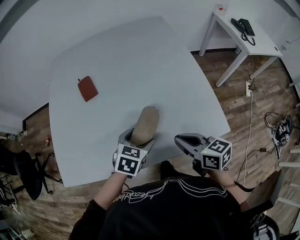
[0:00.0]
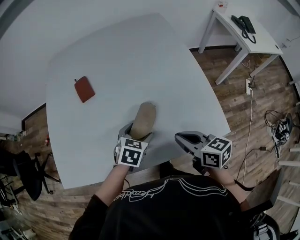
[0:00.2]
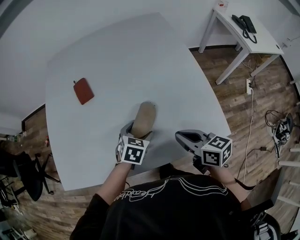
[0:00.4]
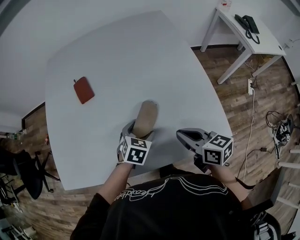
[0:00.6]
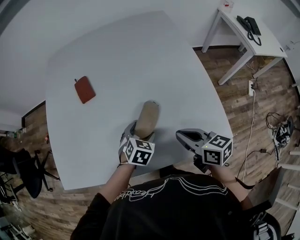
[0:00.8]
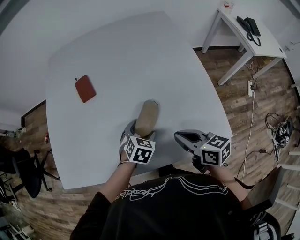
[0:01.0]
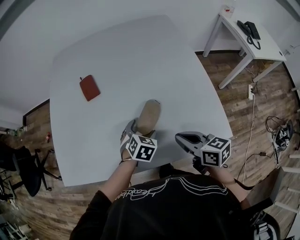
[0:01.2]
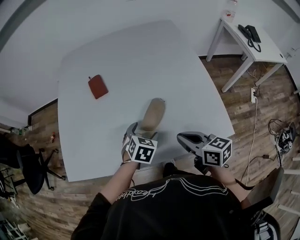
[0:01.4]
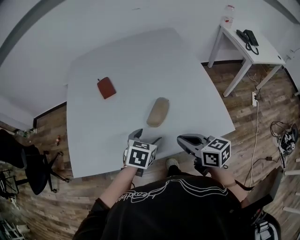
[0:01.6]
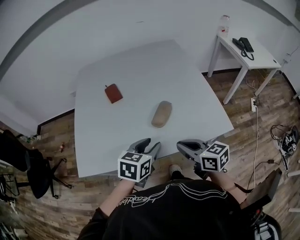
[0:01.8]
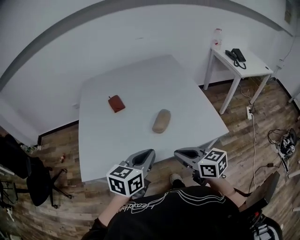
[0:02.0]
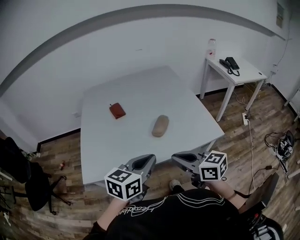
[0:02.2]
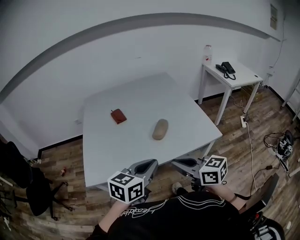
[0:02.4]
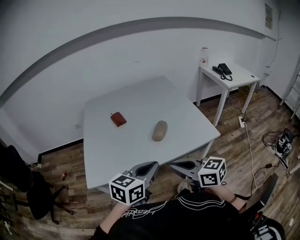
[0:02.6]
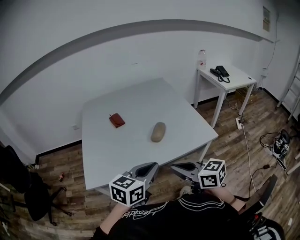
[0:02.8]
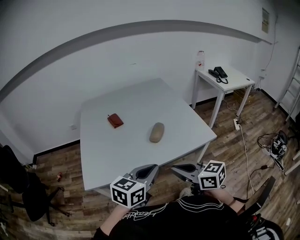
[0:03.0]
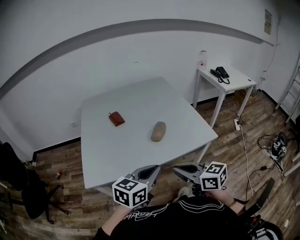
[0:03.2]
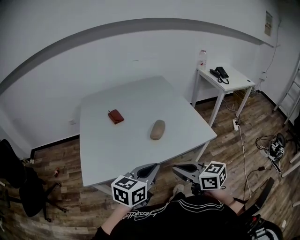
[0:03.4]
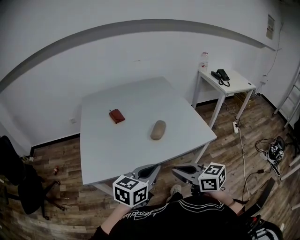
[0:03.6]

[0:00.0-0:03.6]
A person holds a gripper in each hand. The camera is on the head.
0:00.0 to 0:01.8: The right gripper shifts about 10 cm to the left and backward, while the left gripper heads upward, backward and to the left, covering approximately 15 cm, and closes its fingers.
0:01.8 to 0:03.6: The right gripper goes about 20 cm backward, upward and to the left. Meanwhile the left gripper travels backward and upward by some 20 cm, changes its angle by some 20 degrees, and closes its fingers.

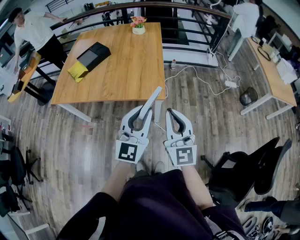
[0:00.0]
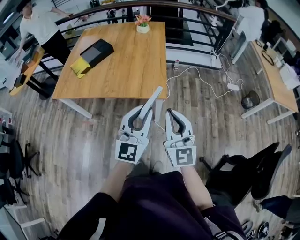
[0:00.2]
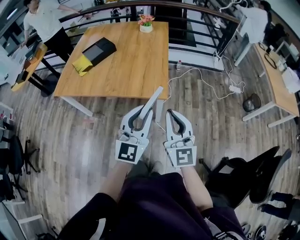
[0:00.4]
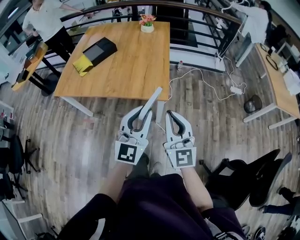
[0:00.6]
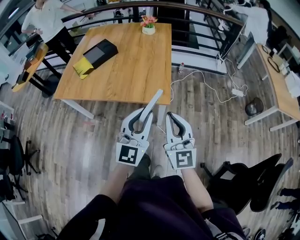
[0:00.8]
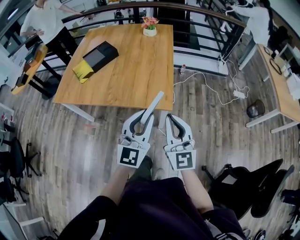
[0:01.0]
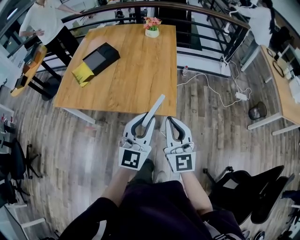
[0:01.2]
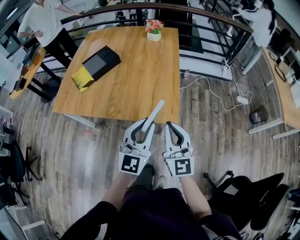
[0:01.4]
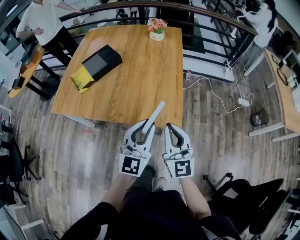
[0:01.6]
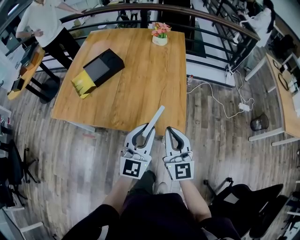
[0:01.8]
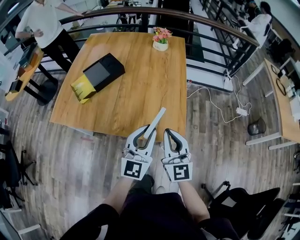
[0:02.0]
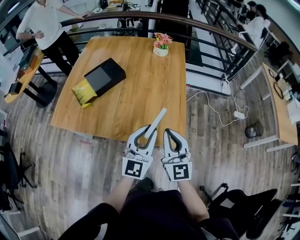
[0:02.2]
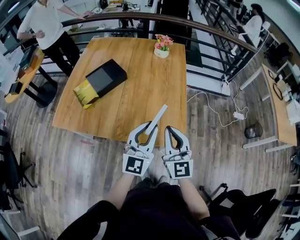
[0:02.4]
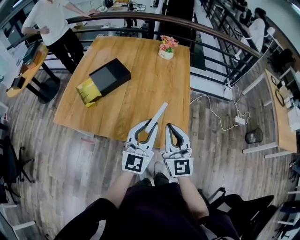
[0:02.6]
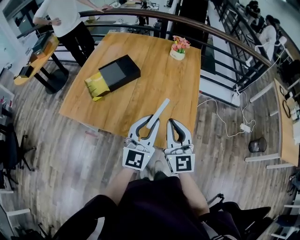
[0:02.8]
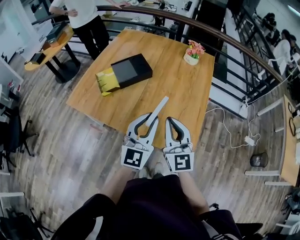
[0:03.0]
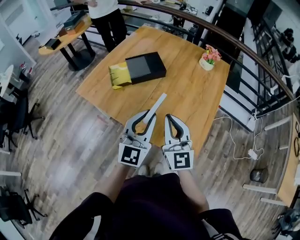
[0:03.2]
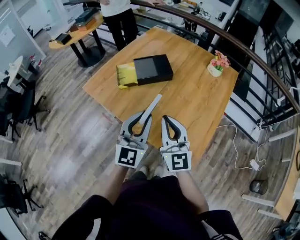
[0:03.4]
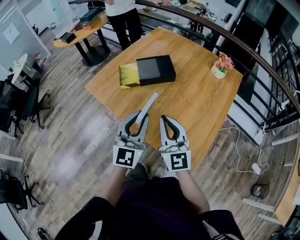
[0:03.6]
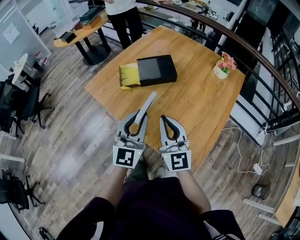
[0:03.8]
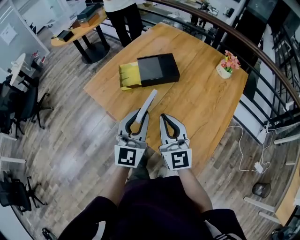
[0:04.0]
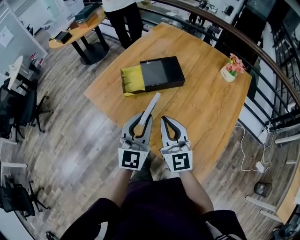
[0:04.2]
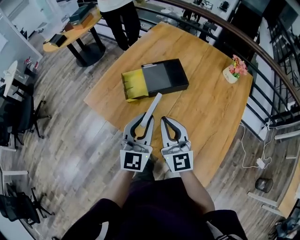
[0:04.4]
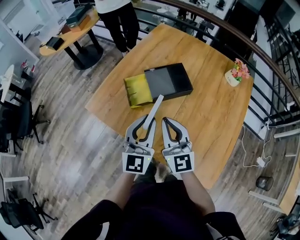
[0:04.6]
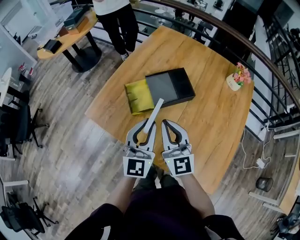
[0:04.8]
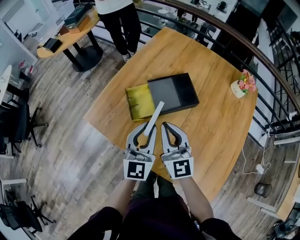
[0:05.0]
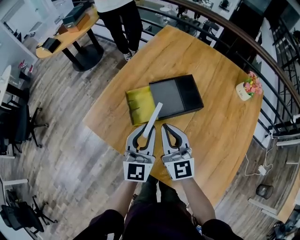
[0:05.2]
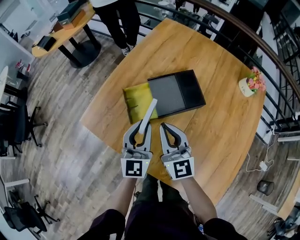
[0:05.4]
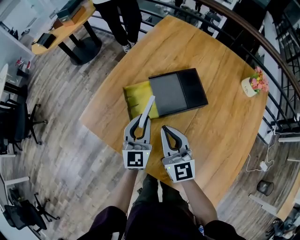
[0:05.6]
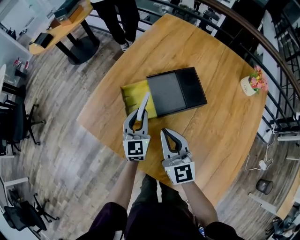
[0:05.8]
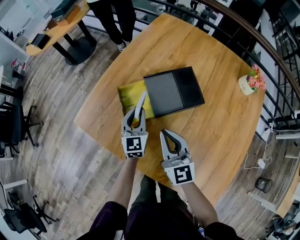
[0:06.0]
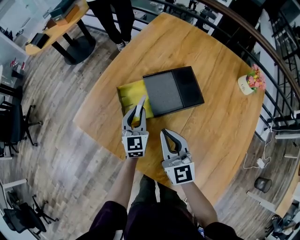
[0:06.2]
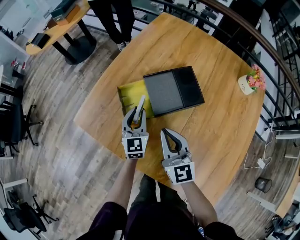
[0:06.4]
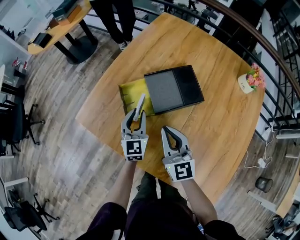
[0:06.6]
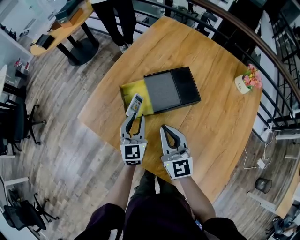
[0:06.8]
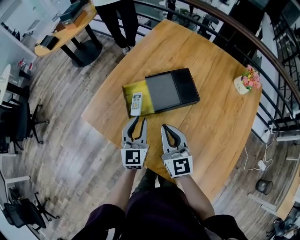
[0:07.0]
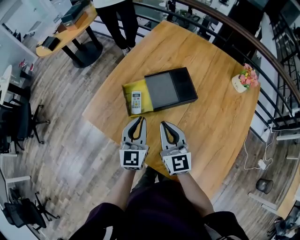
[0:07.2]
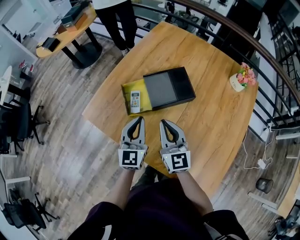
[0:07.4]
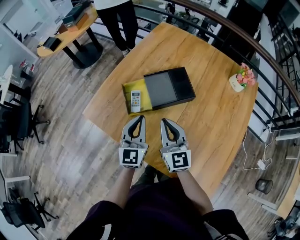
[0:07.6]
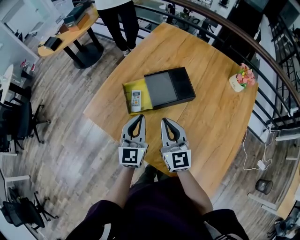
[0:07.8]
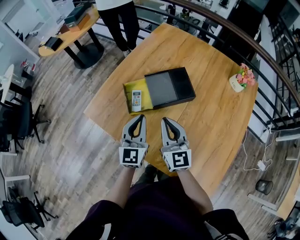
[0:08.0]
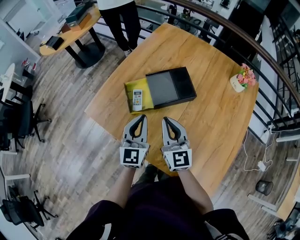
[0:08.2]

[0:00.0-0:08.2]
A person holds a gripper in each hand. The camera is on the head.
0:00.0 to 0:01.6: Both grippers travel together forward and to the left, roughly 20 cm.
0:01.6 to 0:03.2: The left gripper changes place by some 20 cm, and changes its angle by some 30 degrees. Meanwhile the right gripper ends up approximately 25 cm from where it was, and rotates some 20 degrees.
0:03.2 to 0:05.0: Both grippers move forward and to the left, some 35 cm.
0:05.0 to 0:06.6: The right gripper moves downward, approximately 10 cm, while the left gripper is displaced downward and forward by some 20 cm, and changes its angle by about 20 degrees.
0:06.6 to 0:08.2: The right gripper heads backward, covering roughly 5 cm; the left gripper heads upward and backward, covering roughly 20 cm.

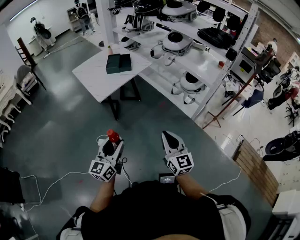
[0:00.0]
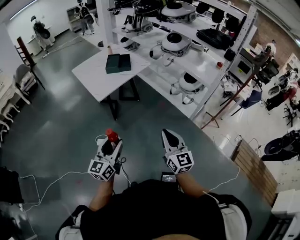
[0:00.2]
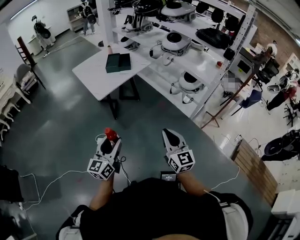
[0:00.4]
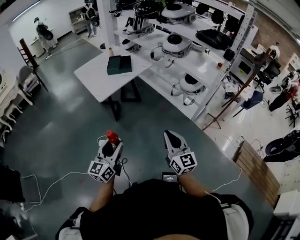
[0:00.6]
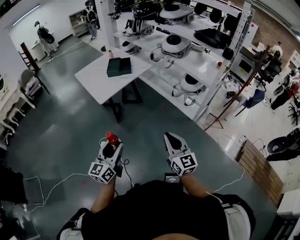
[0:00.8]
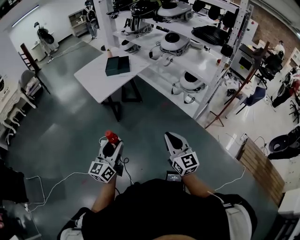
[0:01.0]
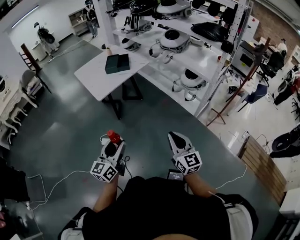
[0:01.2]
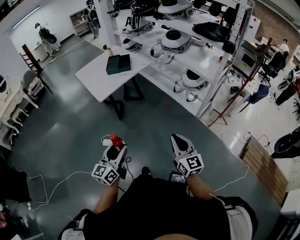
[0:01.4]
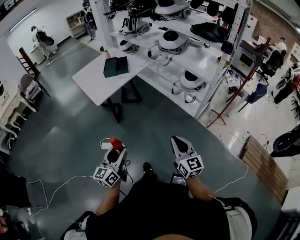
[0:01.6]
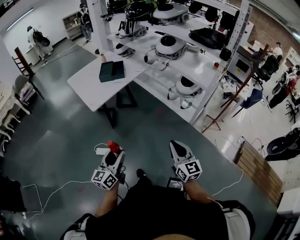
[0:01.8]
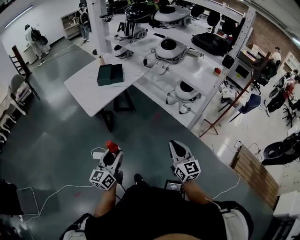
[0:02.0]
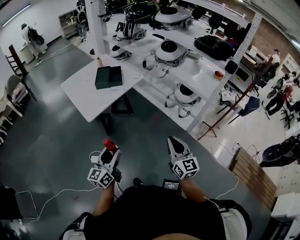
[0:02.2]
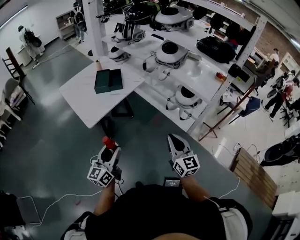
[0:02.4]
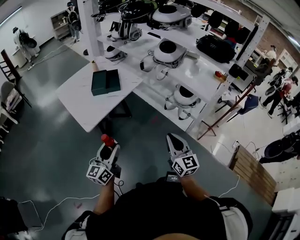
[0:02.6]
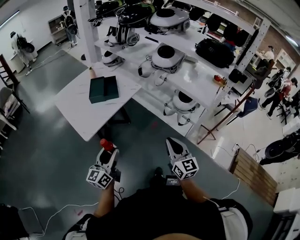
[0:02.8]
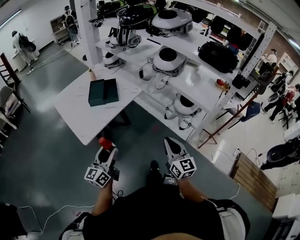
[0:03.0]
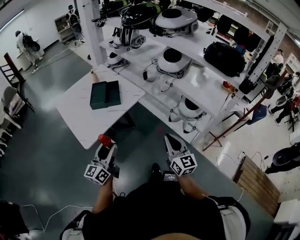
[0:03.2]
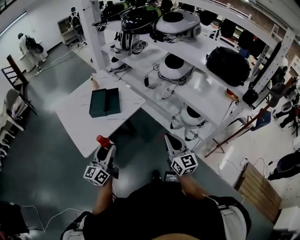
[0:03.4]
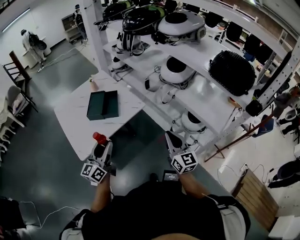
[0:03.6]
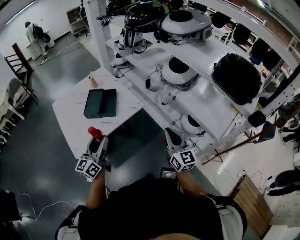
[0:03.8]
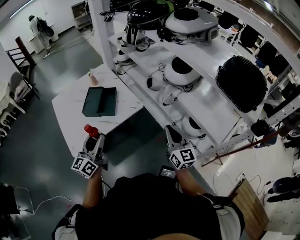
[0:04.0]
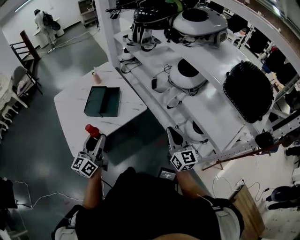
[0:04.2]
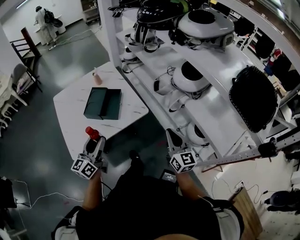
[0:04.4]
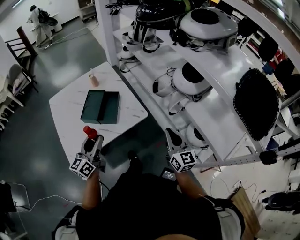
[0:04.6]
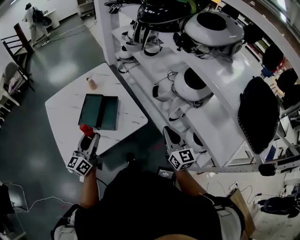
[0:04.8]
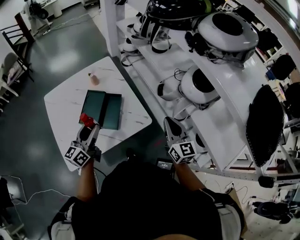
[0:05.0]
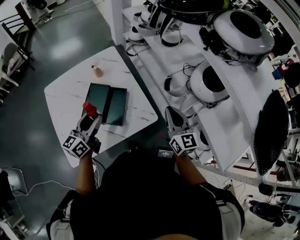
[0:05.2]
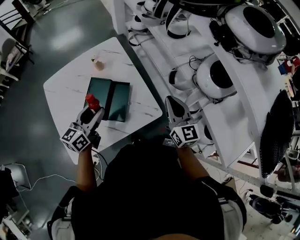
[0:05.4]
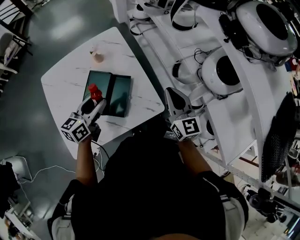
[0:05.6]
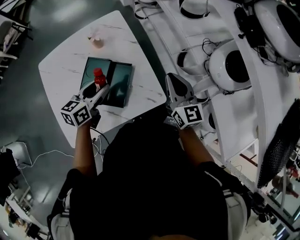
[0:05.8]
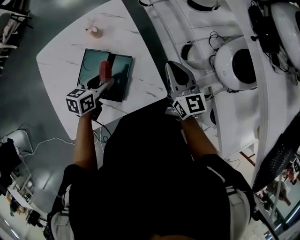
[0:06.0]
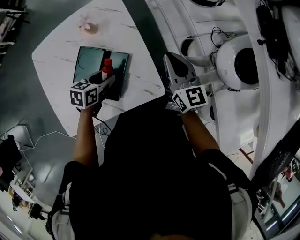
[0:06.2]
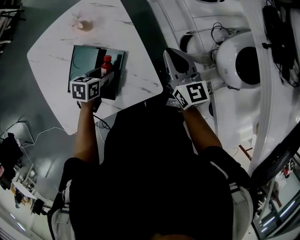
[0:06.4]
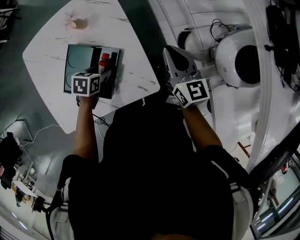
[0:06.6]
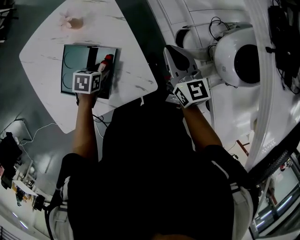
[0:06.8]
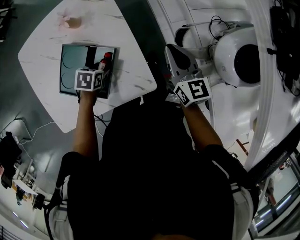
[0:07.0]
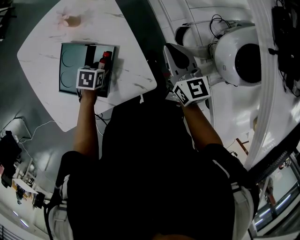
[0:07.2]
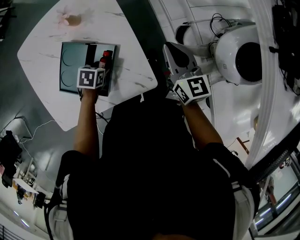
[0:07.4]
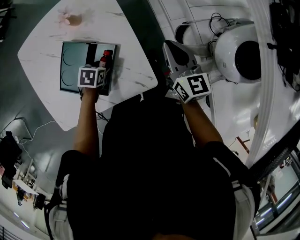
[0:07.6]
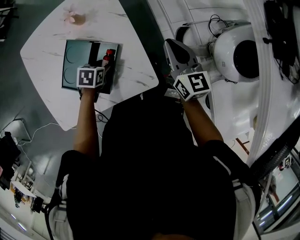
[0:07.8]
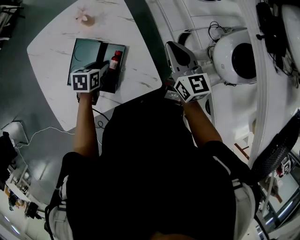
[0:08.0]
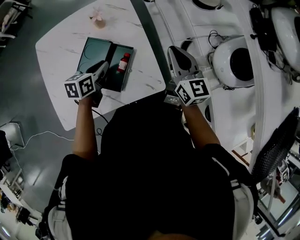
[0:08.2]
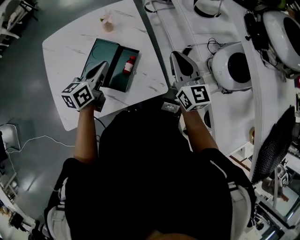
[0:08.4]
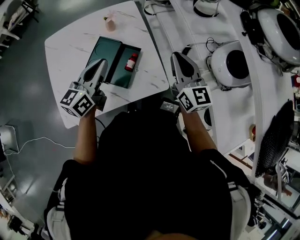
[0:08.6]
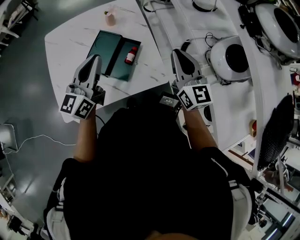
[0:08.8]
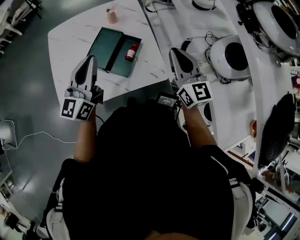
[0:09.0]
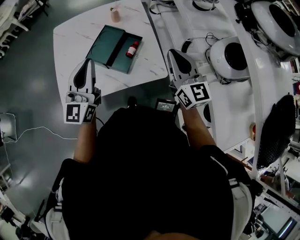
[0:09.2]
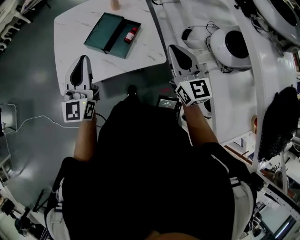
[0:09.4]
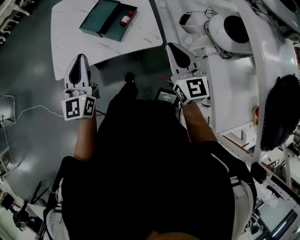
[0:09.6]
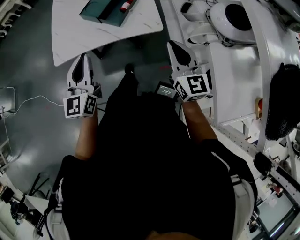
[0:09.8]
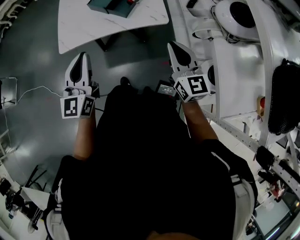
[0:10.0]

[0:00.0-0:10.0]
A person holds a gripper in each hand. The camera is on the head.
0:00.0 to 0:01.4: The right gripper goes roughly 10 cm to the right; the left gripper moves about 5 cm.
0:01.4 to 0:02.8: Both grippers travel together forward, some 30 cm.
0:02.8 to 0:04.2: The two grippers go about 35 cm forward.
0:04.2 to 0:05.8: Both grippers travel together forward, approximately 35 cm. The left gripper angles its fingers downward, by about 30 degrees.
0:05.8 to 0:07.2: The left gripper moves downward, about 20 cm, and tips its fingers downward by about 40 degrees. The right gripper travels forward and downward by roughly 15 cm.
0:07.2 to 0:08.6: The right gripper heads upward, backward and to the left, covering some 20 cm. The left gripper moves upward, about 30 cm, tilts its fingers about 70 degrees upward, and closes its fingers.
0:08.6 to 0:10.0: Both grippers move backward, approximately 35 cm. The left gripper changes its angle by about 40 degrees.

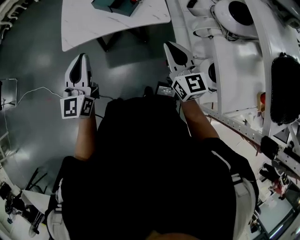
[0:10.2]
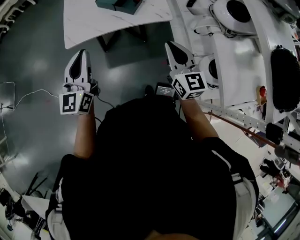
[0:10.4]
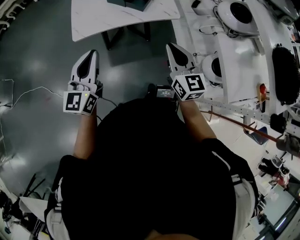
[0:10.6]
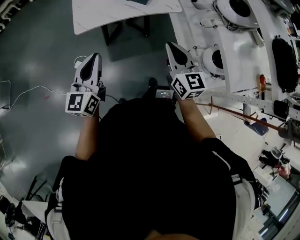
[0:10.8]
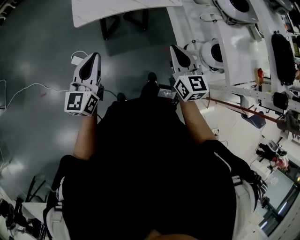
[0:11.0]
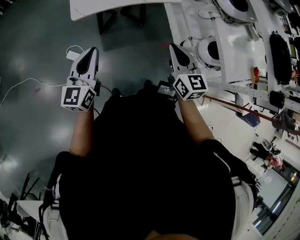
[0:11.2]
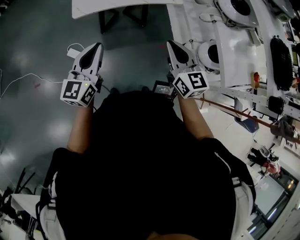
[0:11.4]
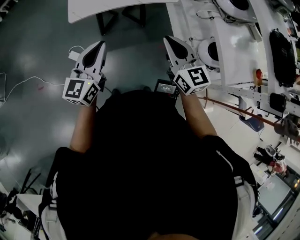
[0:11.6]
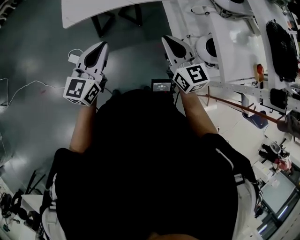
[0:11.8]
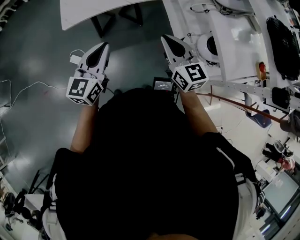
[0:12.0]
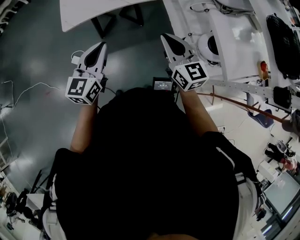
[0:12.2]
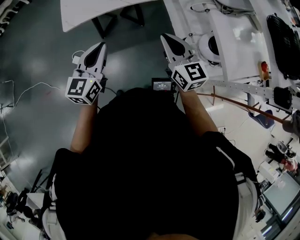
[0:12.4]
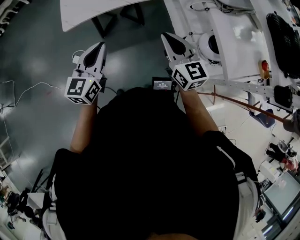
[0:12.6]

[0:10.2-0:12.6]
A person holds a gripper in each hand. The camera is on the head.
0:10.2 to 0:11.4: Both grippers travel together backward and to the left, some 20 cm.
0:11.4 to 0:12.6: The grippers both shift to the right by some 10 cm.
